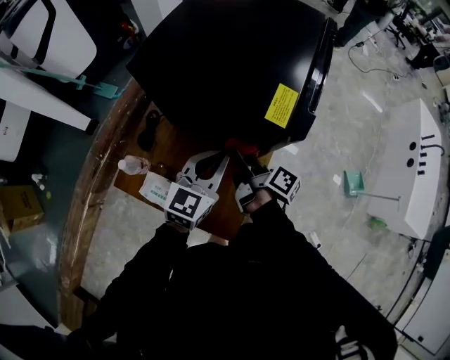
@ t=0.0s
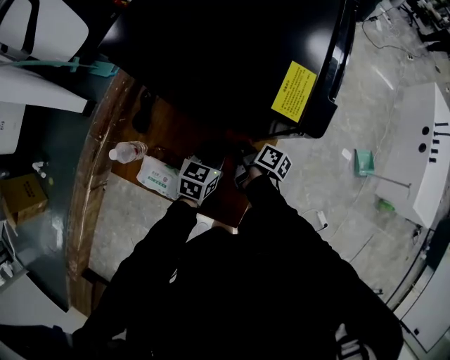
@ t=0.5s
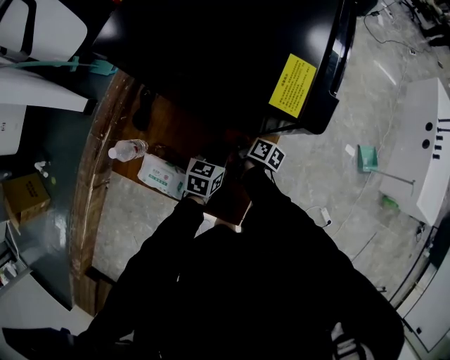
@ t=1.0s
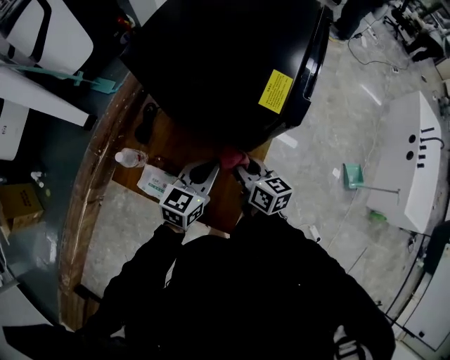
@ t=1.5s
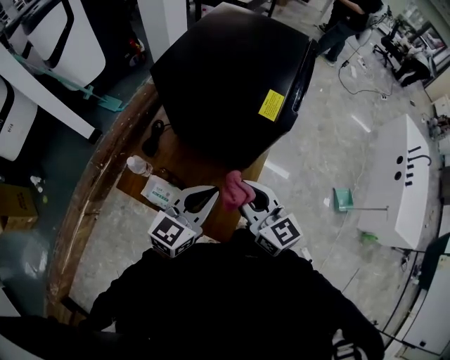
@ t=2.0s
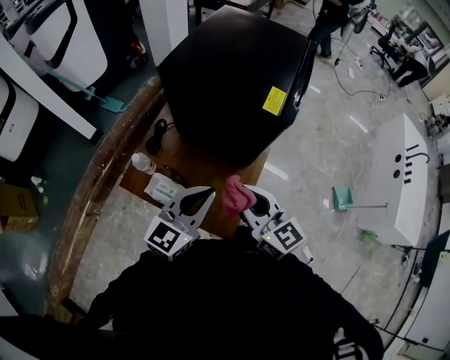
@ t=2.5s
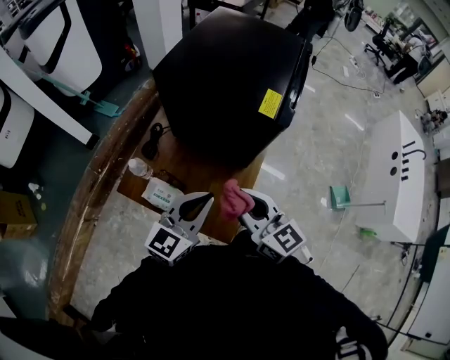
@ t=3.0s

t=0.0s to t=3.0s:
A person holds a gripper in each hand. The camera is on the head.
t=0.0s to t=1.5s: The right gripper goes downward and returns, approximately 25 cm each way, and twists roughly 50 degrees counterclockwise, seen from behind. The left gripper reaches approximately 25 cm downward, then returns.
t=1.5s to t=3.0s: Both grippers move upward and backward, some 20 cm. The right gripper swivels about 30 degrees.

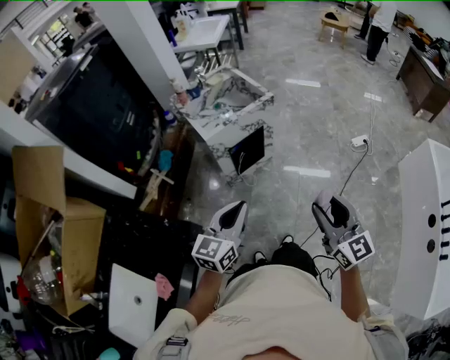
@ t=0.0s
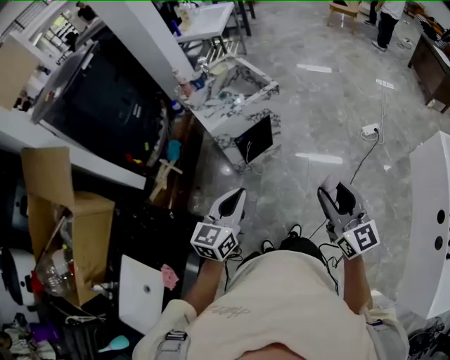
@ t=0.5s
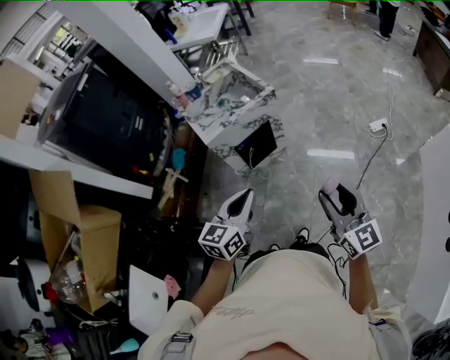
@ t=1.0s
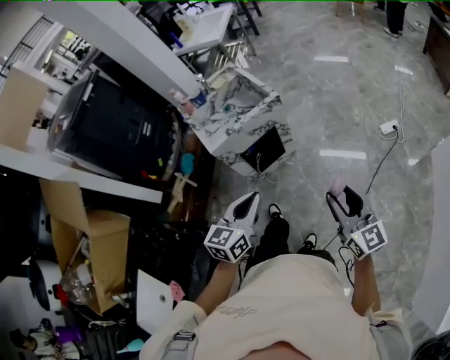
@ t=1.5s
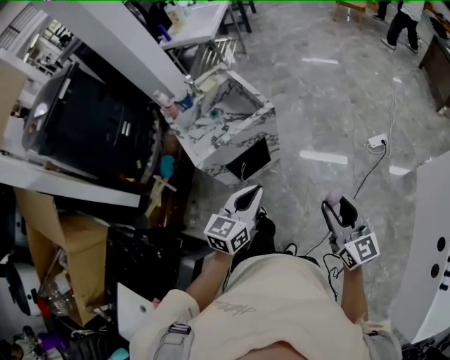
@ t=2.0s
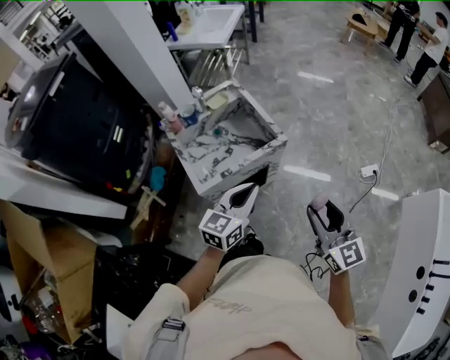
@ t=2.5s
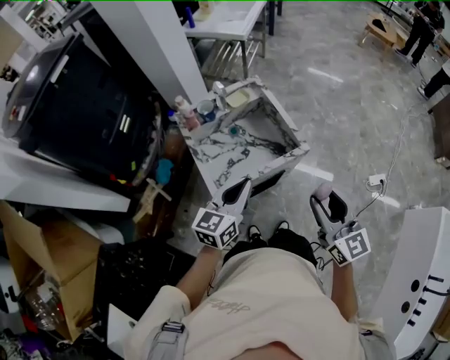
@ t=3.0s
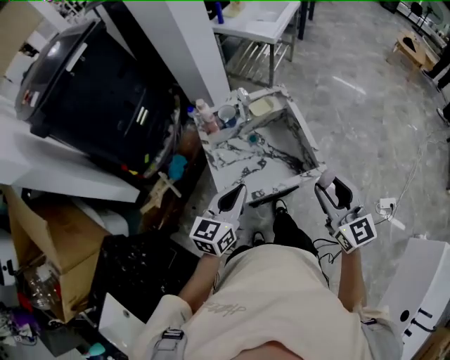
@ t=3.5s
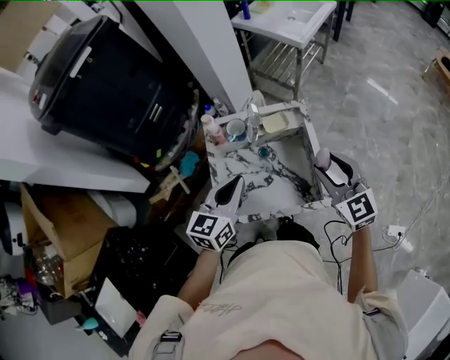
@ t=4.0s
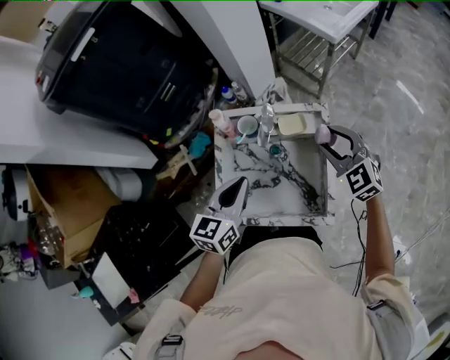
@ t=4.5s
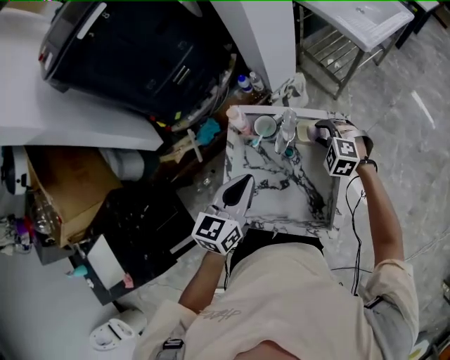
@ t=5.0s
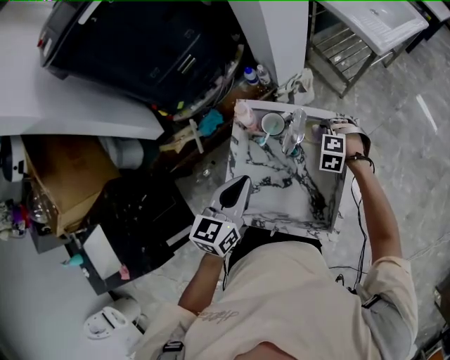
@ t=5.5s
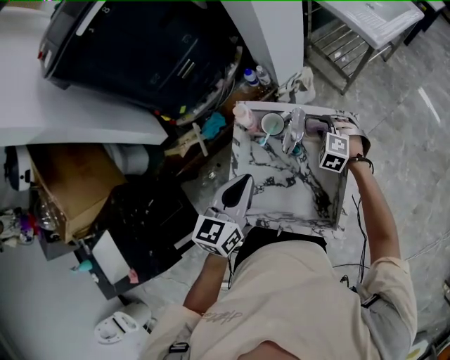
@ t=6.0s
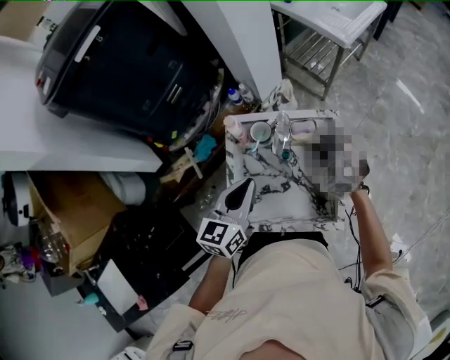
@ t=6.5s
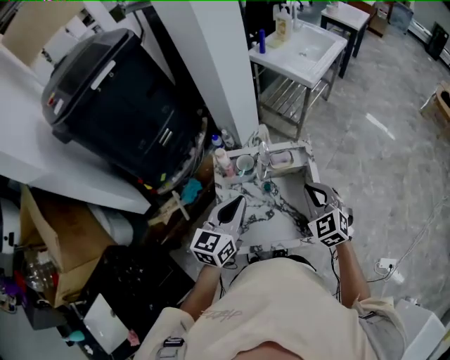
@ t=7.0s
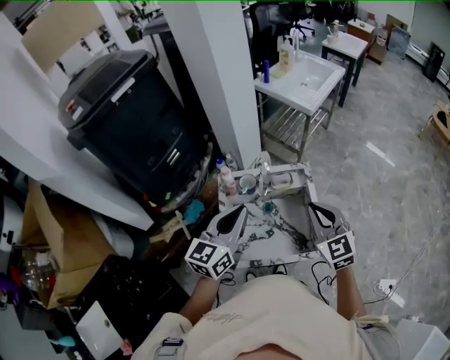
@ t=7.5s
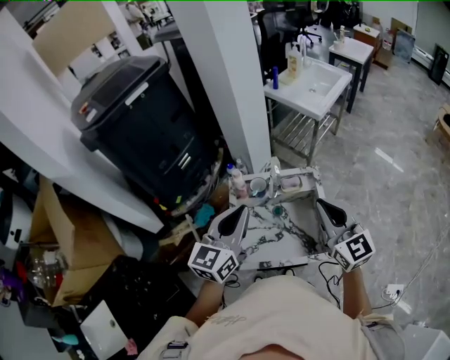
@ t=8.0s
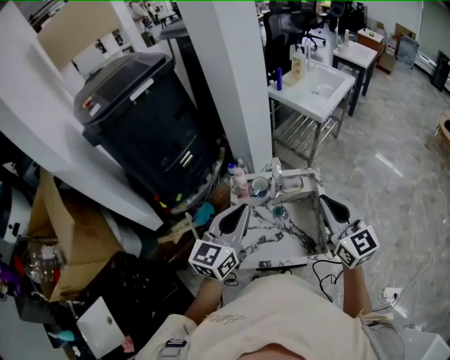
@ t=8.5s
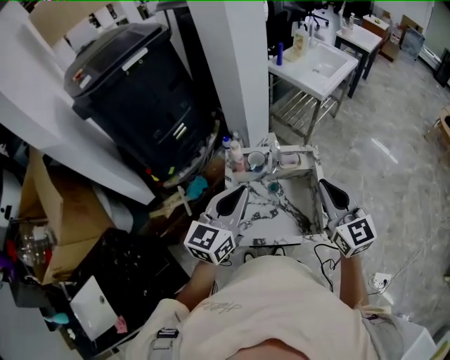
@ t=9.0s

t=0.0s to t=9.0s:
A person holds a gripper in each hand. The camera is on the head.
t=0.0s to t=2.0s: The two grippers go roughly 25 cm forward and to the right.
t=2.0s to t=4.5s: The pair of grippers is taken roughly 60 cm. The right gripper rotates some 70 degrees. The left gripper turns by some 40 degrees.
t=4.5s to t=7.0s: The right gripper goes approximately 5 cm backward, moves roughly 20 cm downward and comes back, and closes up.
t=7.0s to t=9.0s: The right gripper goes approximately 15 cm upward and backward, and rotates roughly 40 degrees, while the left gripper is displaced upward by some 10 cm.

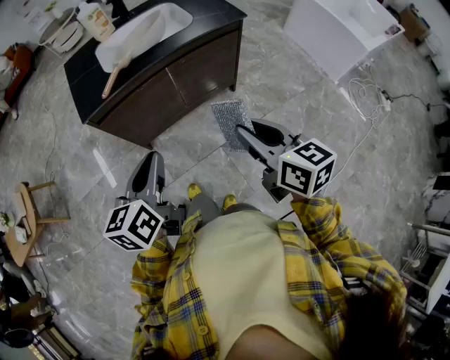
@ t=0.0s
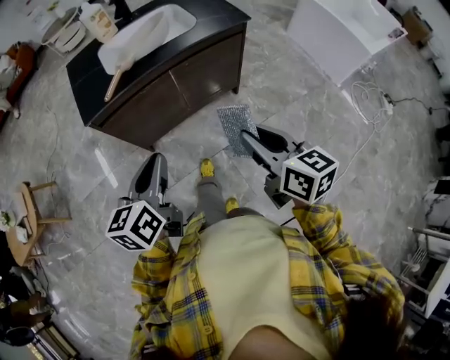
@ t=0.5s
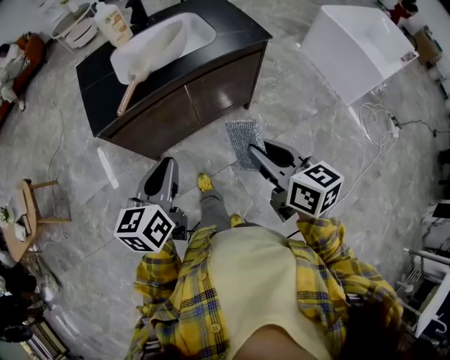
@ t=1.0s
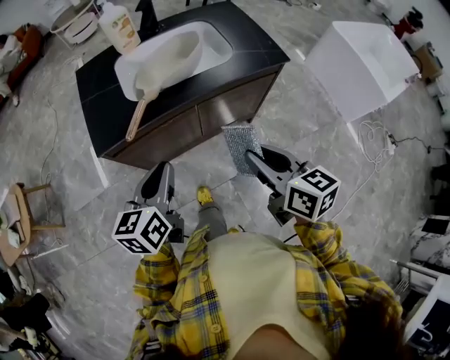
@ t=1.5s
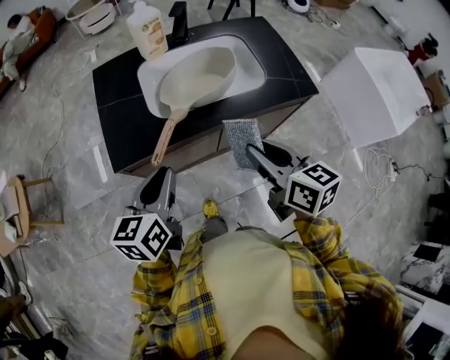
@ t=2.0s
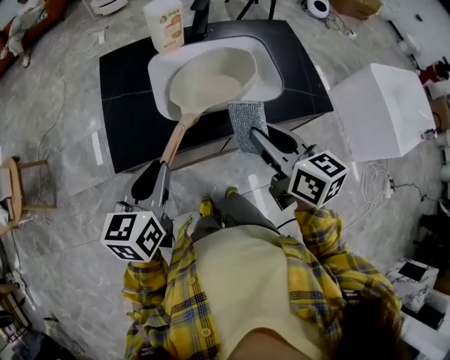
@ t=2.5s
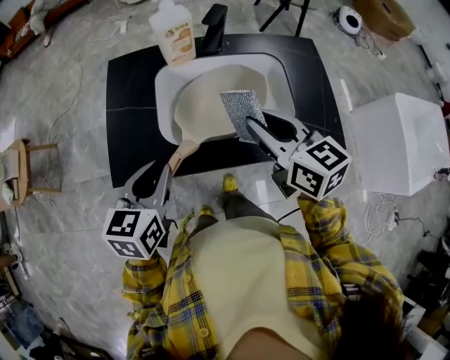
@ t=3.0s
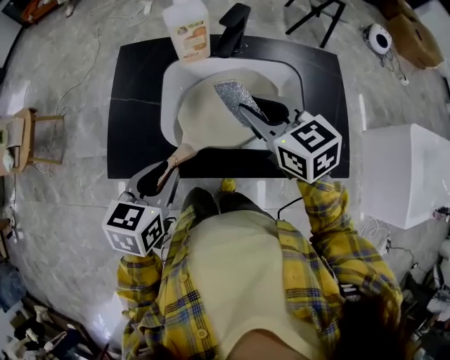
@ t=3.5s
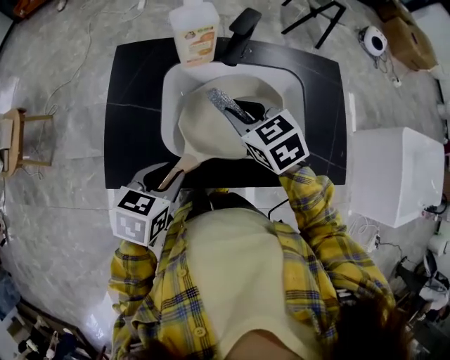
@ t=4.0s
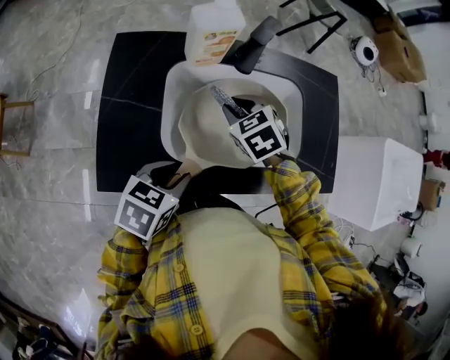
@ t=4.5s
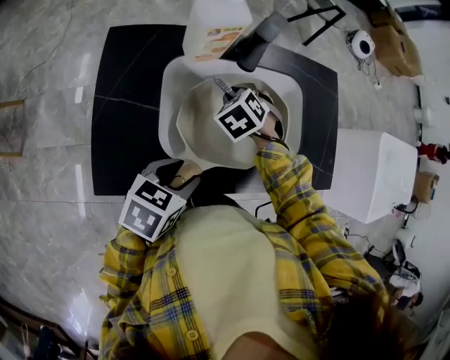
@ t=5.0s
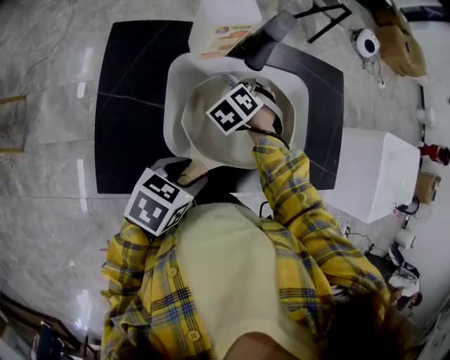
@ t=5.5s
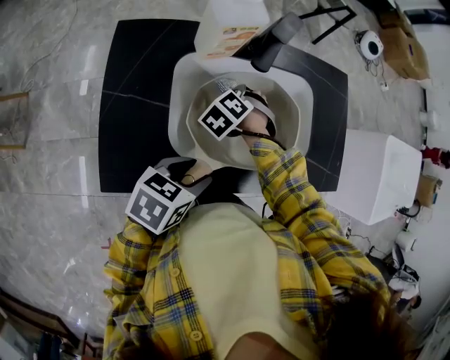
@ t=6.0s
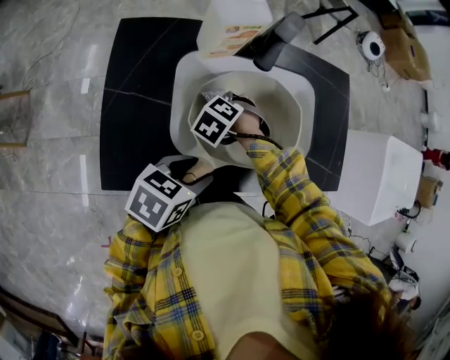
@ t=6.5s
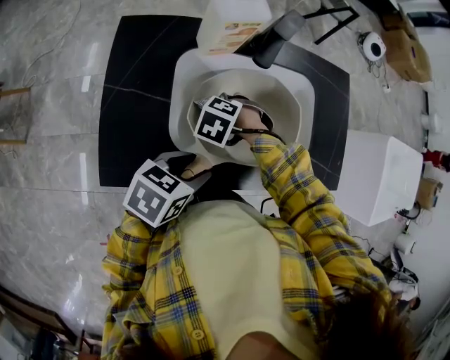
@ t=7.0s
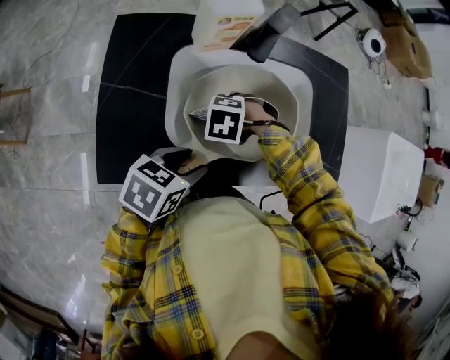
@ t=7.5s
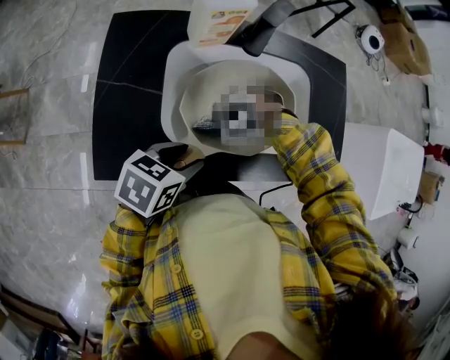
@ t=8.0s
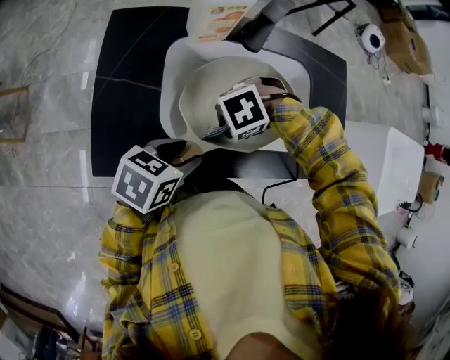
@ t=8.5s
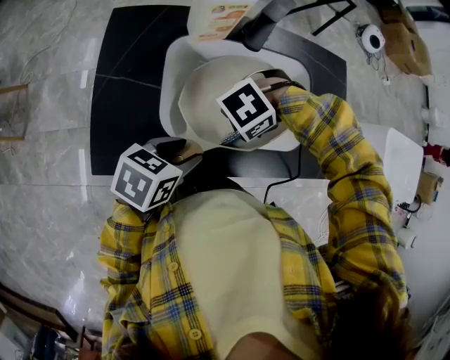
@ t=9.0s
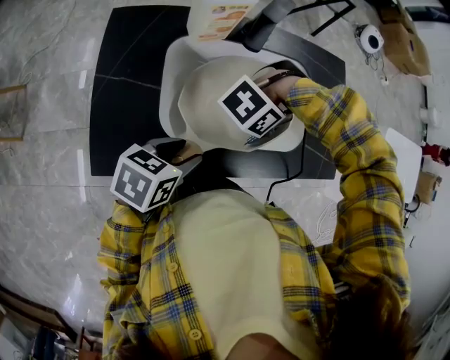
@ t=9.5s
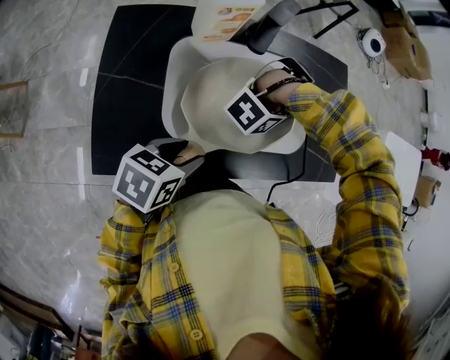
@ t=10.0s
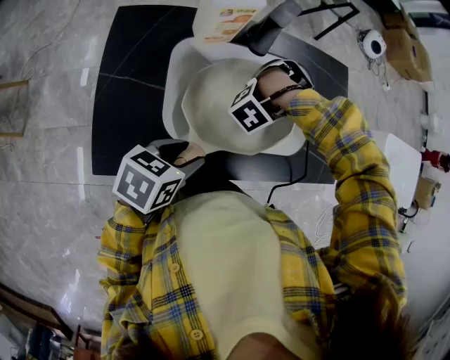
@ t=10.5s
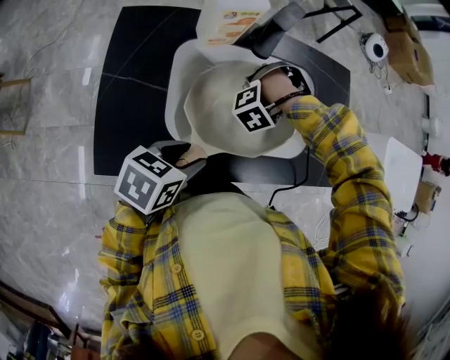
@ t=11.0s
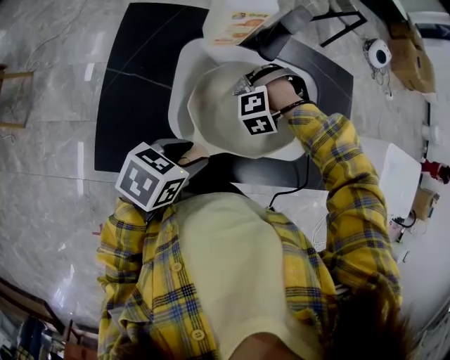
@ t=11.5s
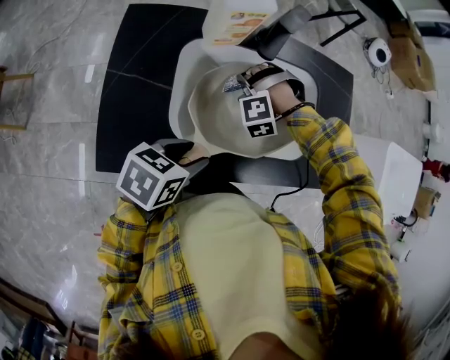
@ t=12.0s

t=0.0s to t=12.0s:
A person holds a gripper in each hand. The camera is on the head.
t=0.0s to t=2.0s: The left gripper moves roughly 25 cm.
t=2.0s to t=4.0s: The left gripper moves approximately 15 cm, and rotates about 30 degrees.
t=4.0s to t=6.0s: The left gripper swivels some 20 degrees.

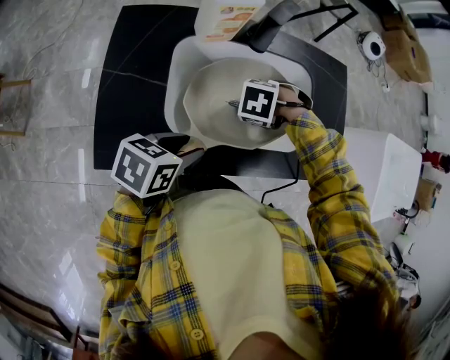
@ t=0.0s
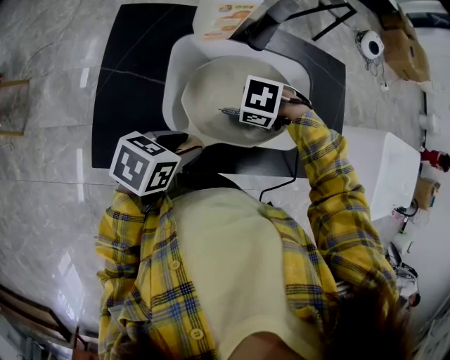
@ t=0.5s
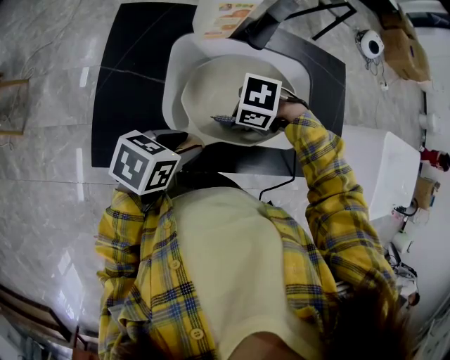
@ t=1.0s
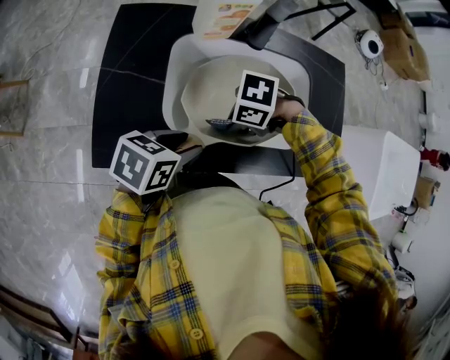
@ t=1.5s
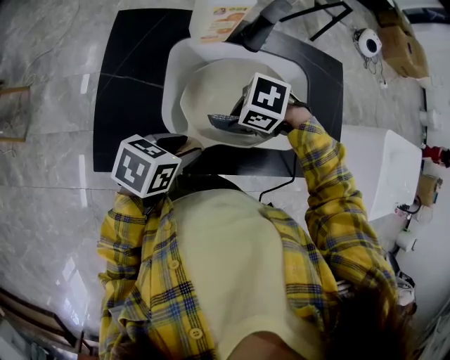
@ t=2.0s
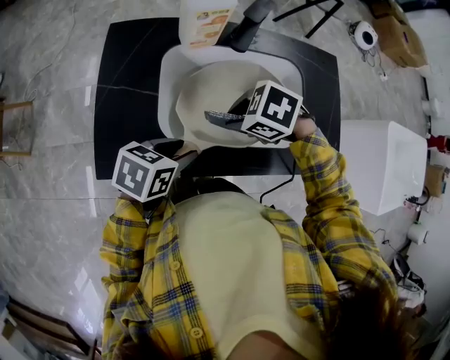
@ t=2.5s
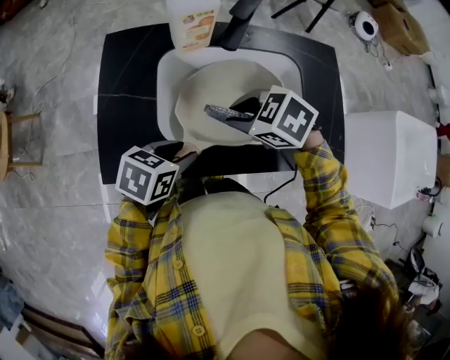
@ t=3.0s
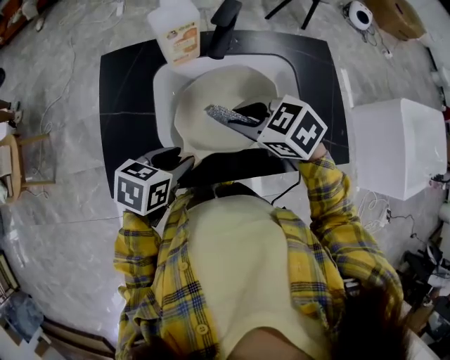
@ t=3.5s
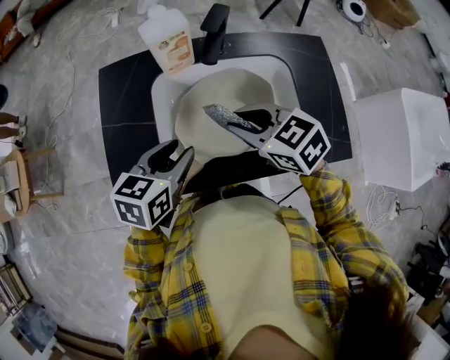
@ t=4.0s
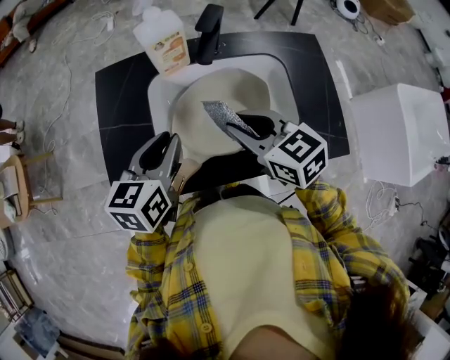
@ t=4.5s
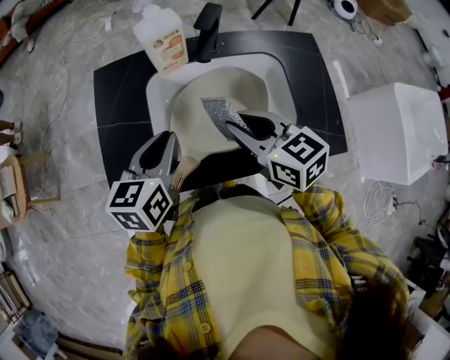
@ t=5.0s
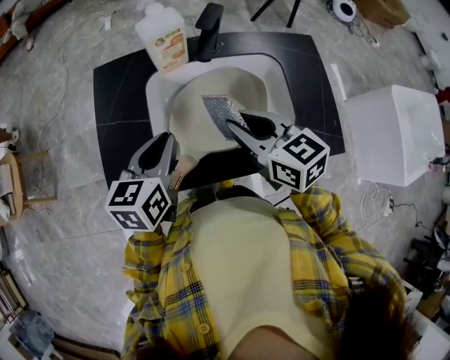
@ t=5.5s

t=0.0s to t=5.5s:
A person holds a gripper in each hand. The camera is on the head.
t=3.5s to t=5.5s: The left gripper travels upward by some 10 cm, turns by approximately 30 degrees, and closes.
